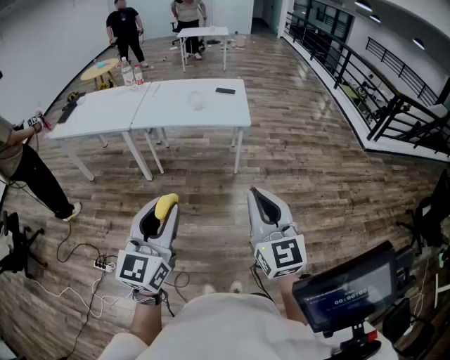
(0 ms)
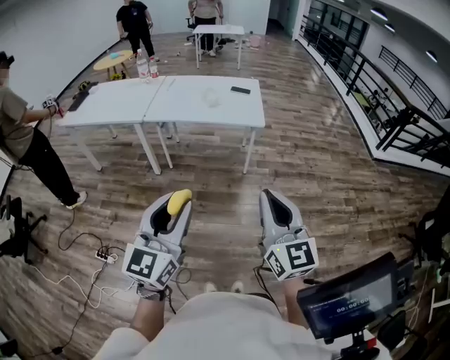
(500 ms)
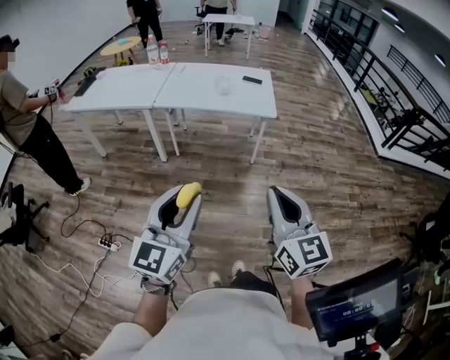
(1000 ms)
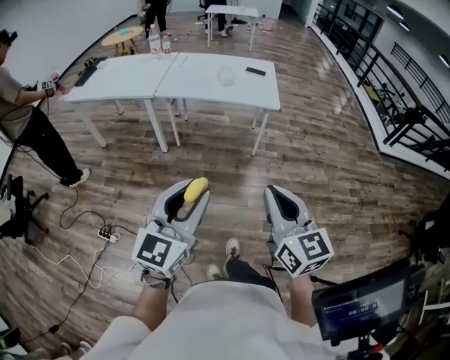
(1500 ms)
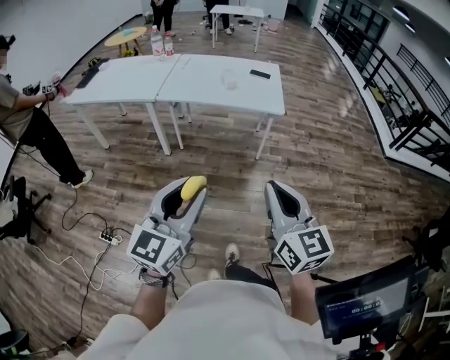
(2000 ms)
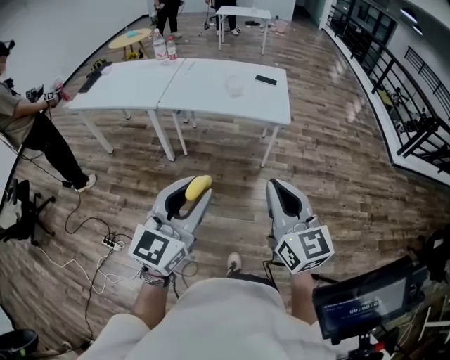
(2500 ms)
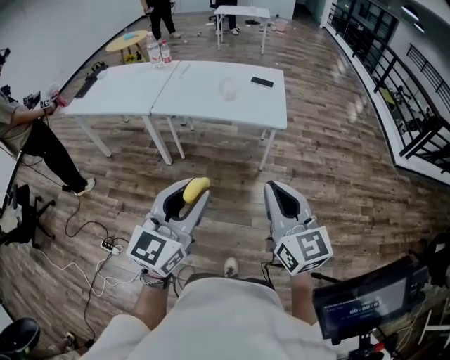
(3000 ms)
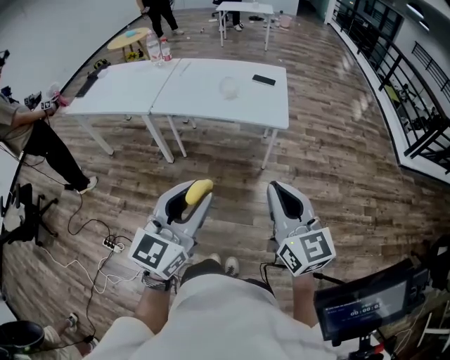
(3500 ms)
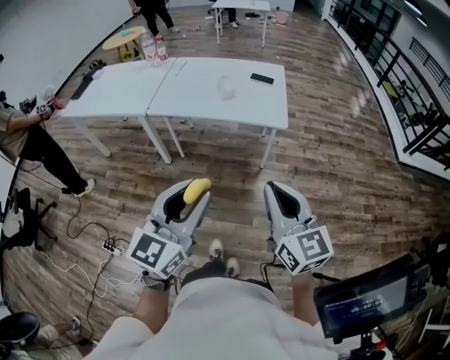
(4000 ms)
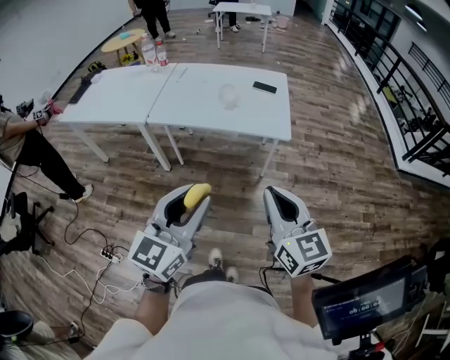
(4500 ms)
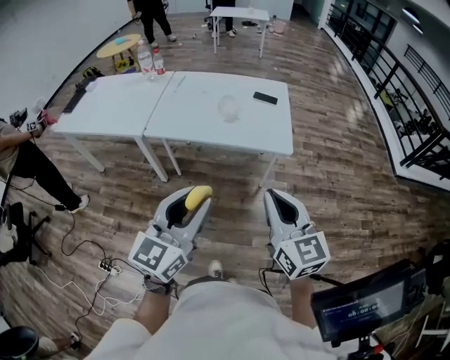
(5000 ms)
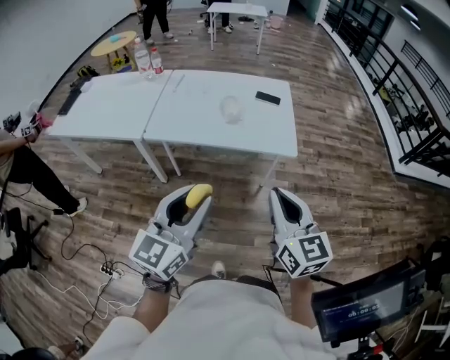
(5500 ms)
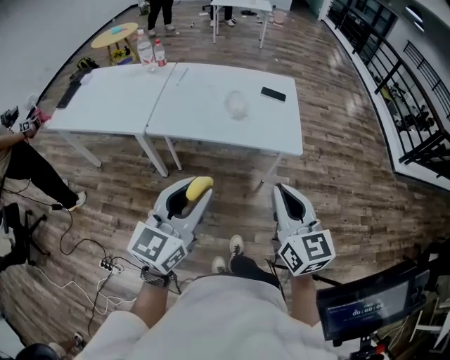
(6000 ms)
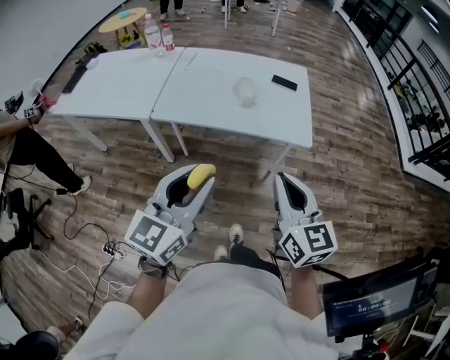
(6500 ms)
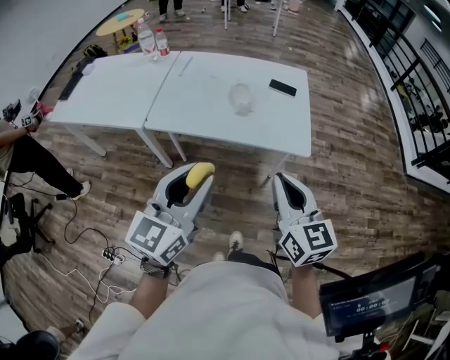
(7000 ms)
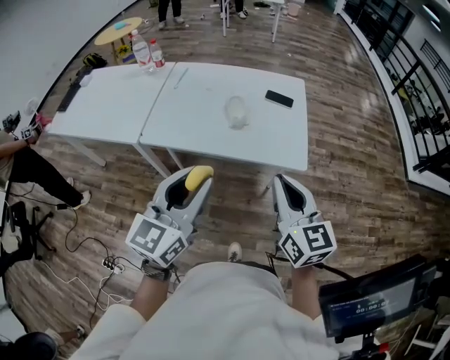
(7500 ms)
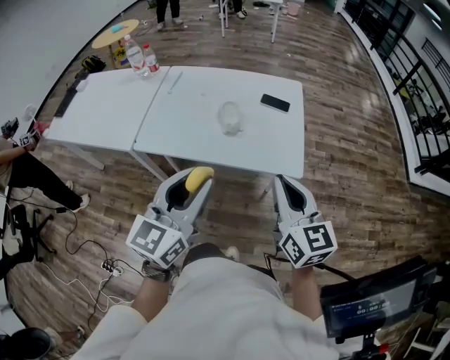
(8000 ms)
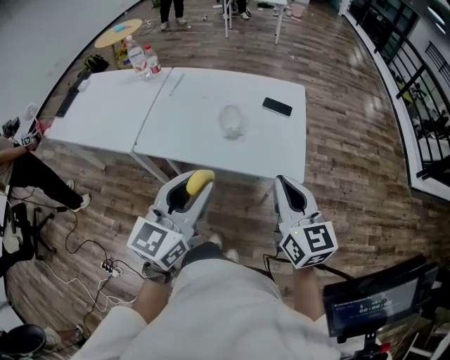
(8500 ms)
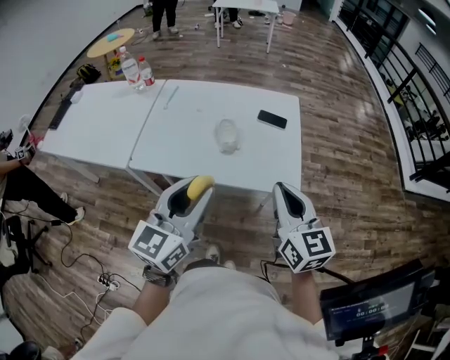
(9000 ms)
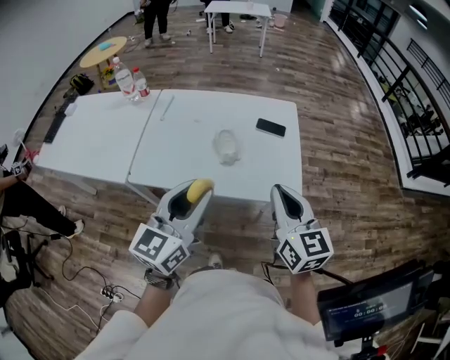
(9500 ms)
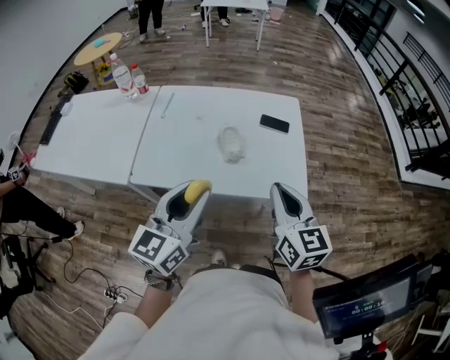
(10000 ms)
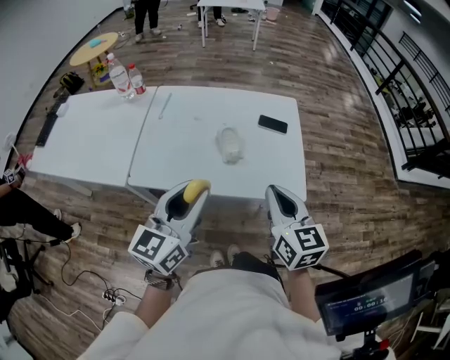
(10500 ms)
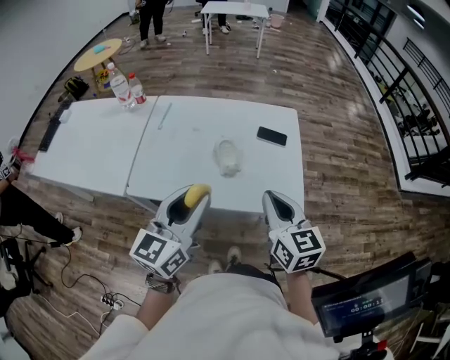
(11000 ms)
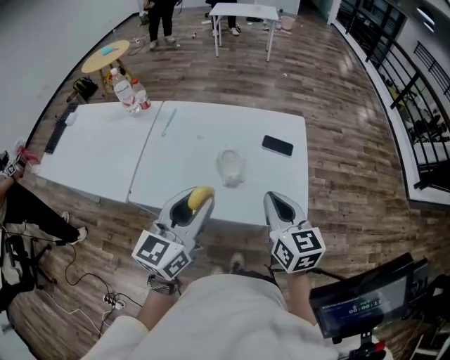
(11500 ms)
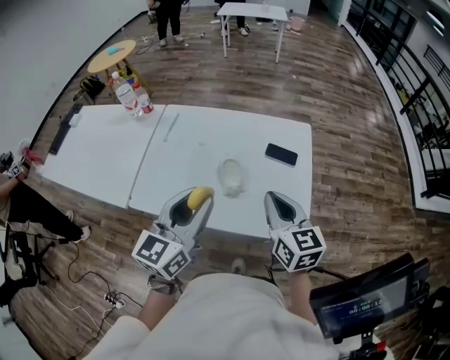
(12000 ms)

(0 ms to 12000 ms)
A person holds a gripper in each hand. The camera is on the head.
0 ms - 2000 ms: The right gripper ends up roughly 5 cm from where it was.
2000 ms - 4000 ms: The left gripper moves forward and to the right, approximately 15 cm. Meanwhile the right gripper shifts some 15 cm forward.
4000 ms - 6000 ms: Both grippers move forward and to the left, roughly 15 cm.
6000 ms - 8000 ms: The two grippers go some 15 cm forward.
8000 ms - 10000 ms: The left gripper travels forward and to the left by about 10 cm, while the right gripper shifts approximately 5 cm forward.
10000 ms - 12000 ms: The two grippers go approximately 10 cm forward.

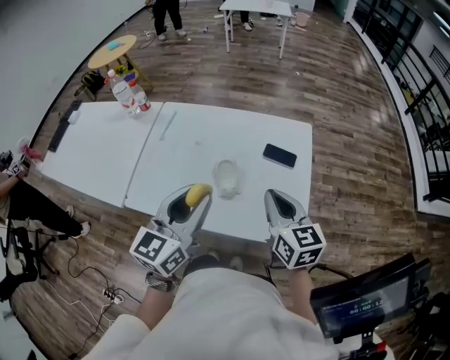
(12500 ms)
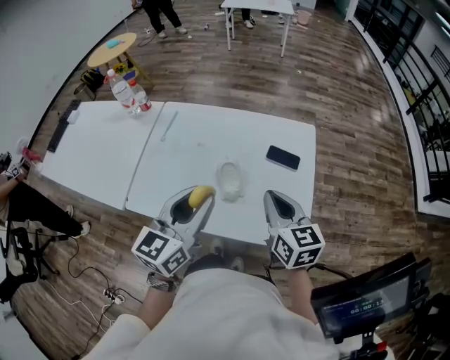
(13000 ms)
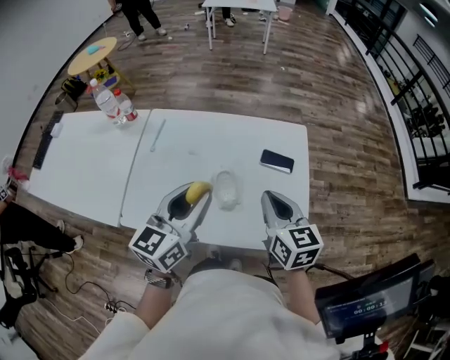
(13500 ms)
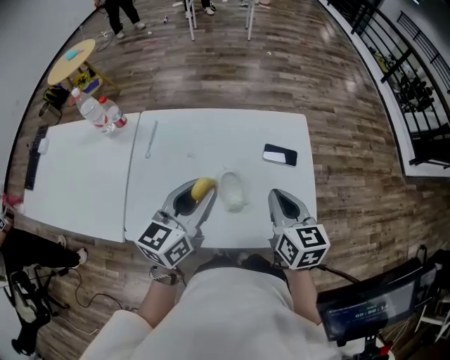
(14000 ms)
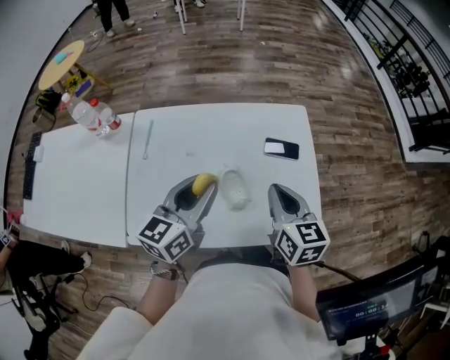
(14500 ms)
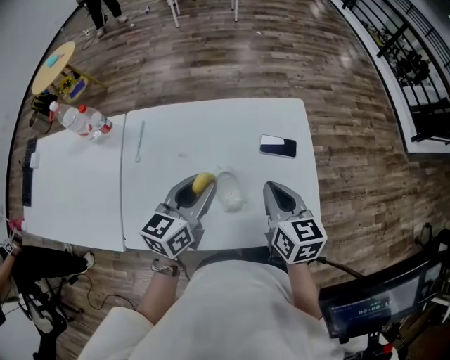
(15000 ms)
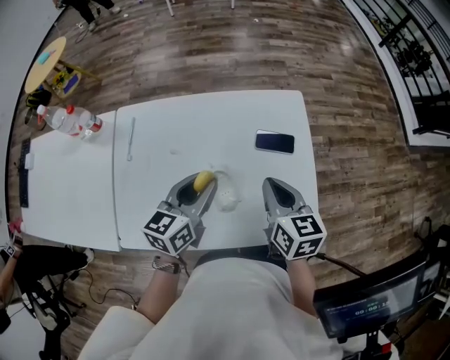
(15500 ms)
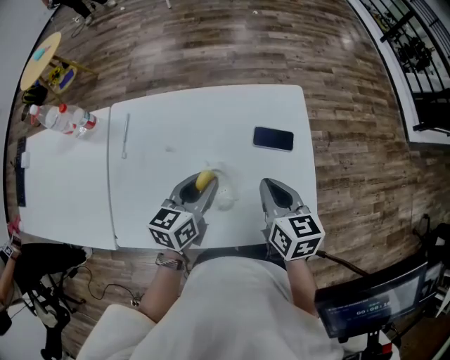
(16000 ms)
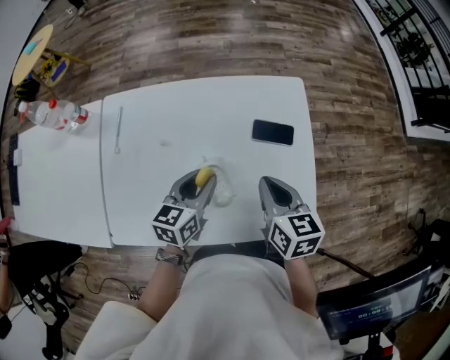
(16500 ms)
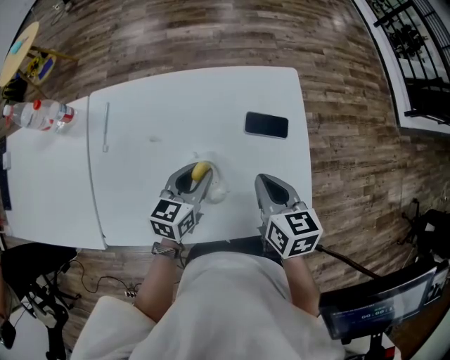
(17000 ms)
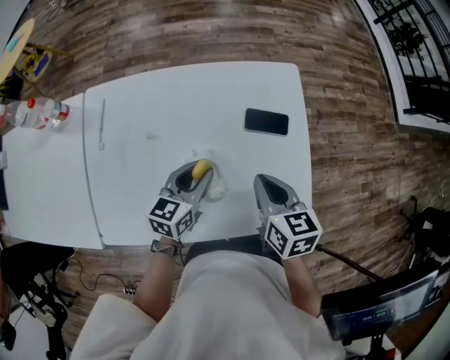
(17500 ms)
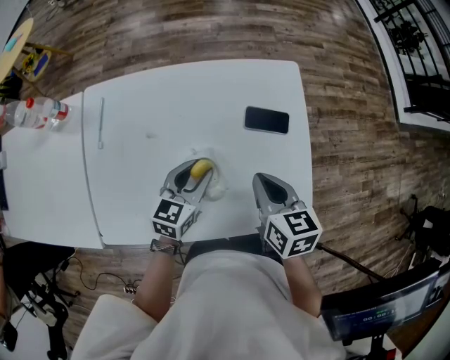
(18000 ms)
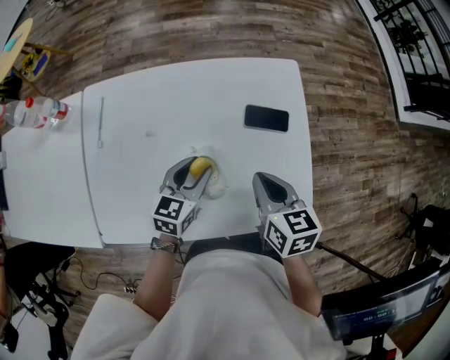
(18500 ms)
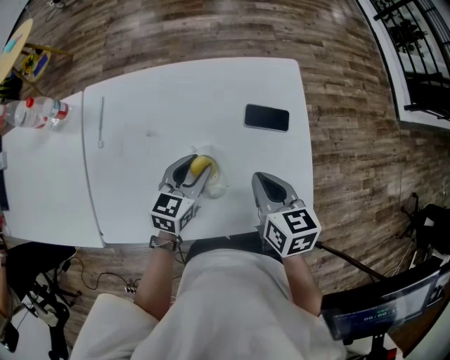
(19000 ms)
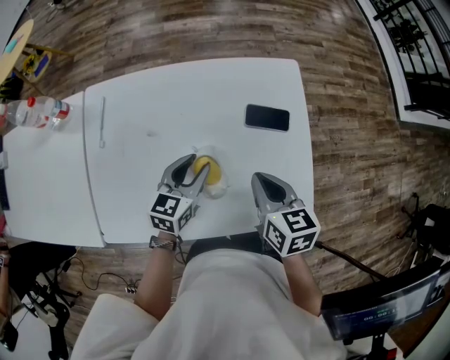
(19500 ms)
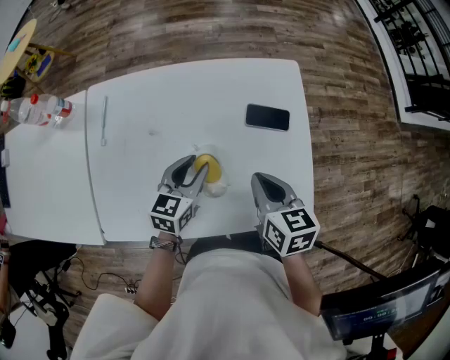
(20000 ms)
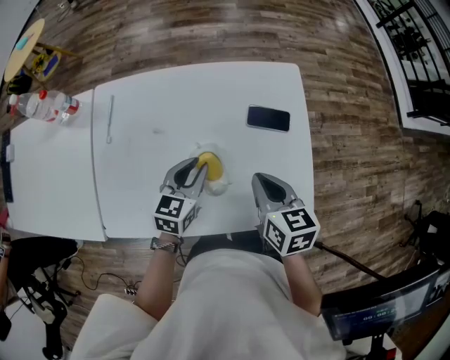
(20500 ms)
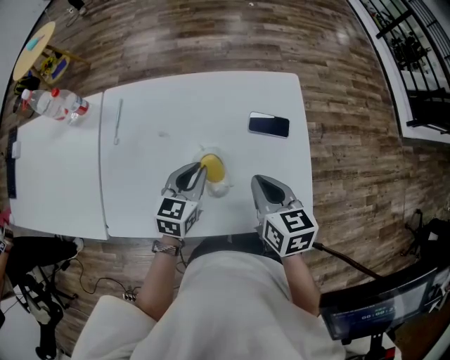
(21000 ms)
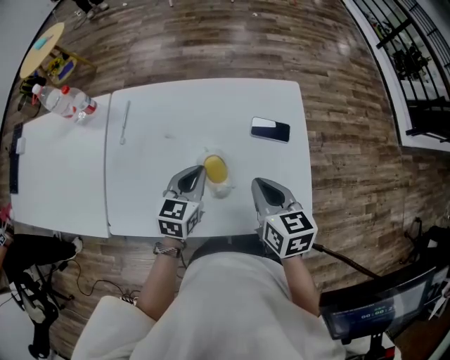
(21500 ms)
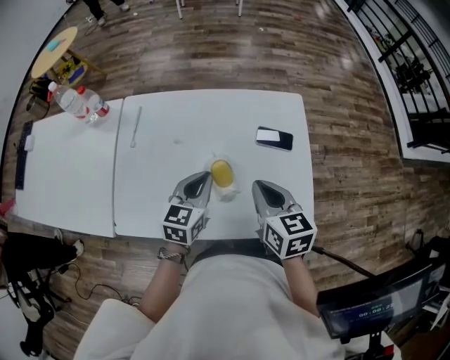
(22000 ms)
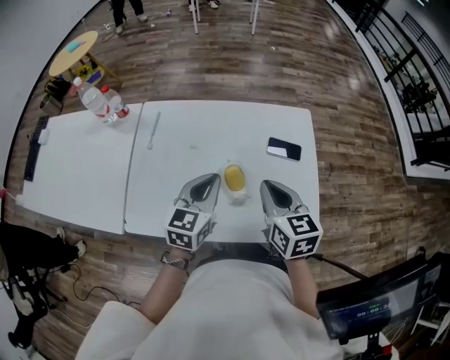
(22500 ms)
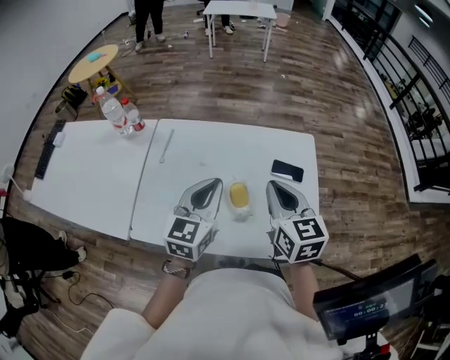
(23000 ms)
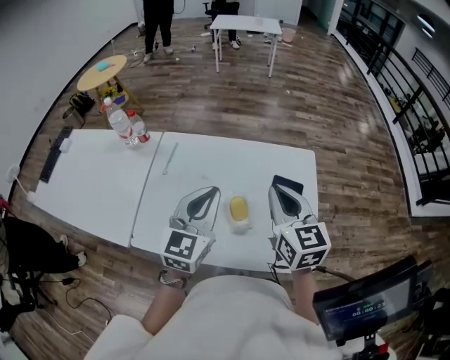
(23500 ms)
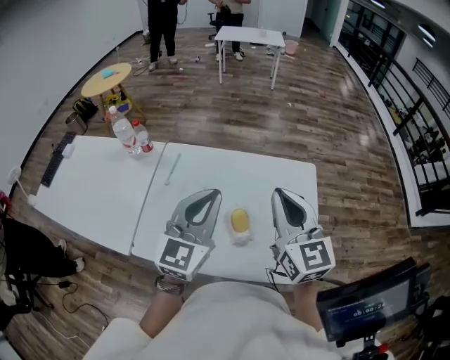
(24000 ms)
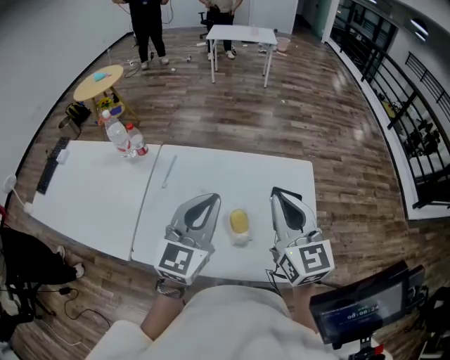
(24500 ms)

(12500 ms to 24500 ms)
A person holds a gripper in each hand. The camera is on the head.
12500 ms - 14500 ms: The right gripper shifts by approximately 5 cm, while the left gripper is displaced forward and downward by roughly 10 cm, and changes its angle by some 20 degrees.
14500 ms - 16500 ms: The left gripper is displaced downward by some 15 cm, while the right gripper heads downward, covering approximately 5 cm.
16500 ms - 18500 ms: The grippers make only small movements.
18500 ms - 20500 ms: The two grippers keep their place.
20500 ms - 22500 ms: Both grippers move upward, about 10 cm. The left gripper closes.
22500 ms - 24500 ms: Both grippers move upward, approximately 15 cm. The right gripper changes its angle by some 30 degrees, while the left gripper changes its angle by about 30 degrees.

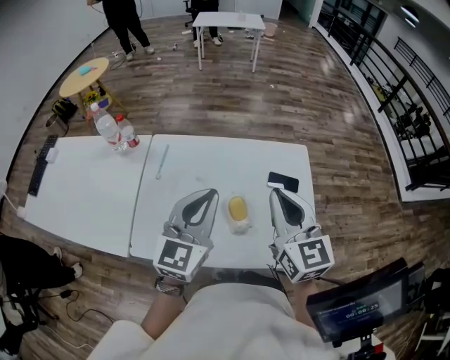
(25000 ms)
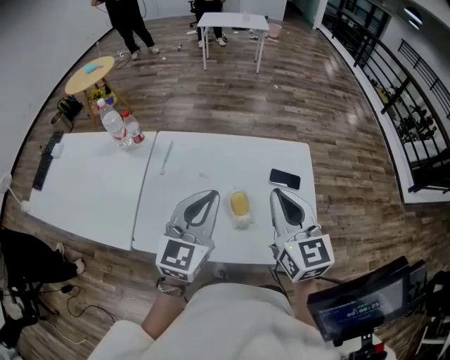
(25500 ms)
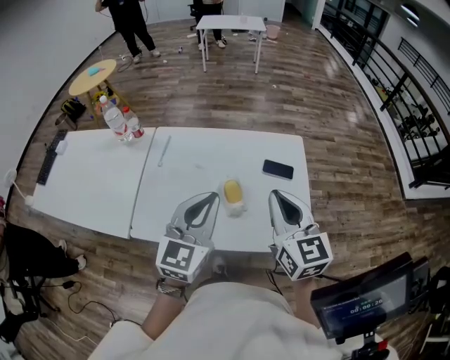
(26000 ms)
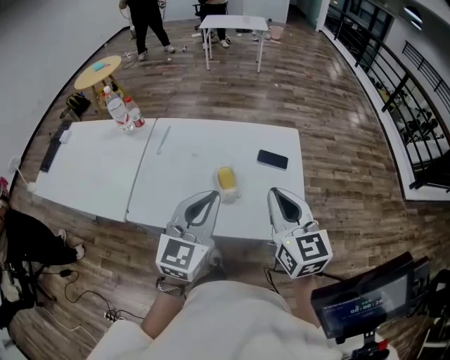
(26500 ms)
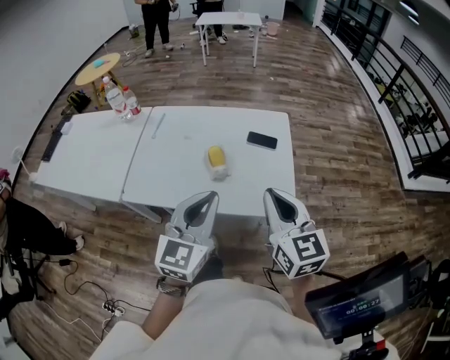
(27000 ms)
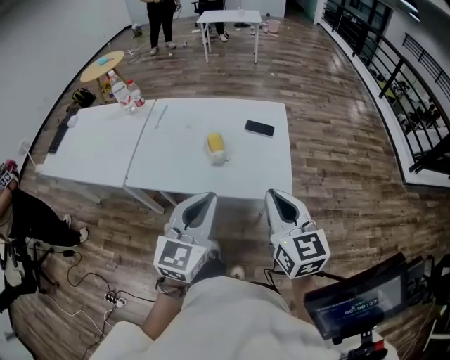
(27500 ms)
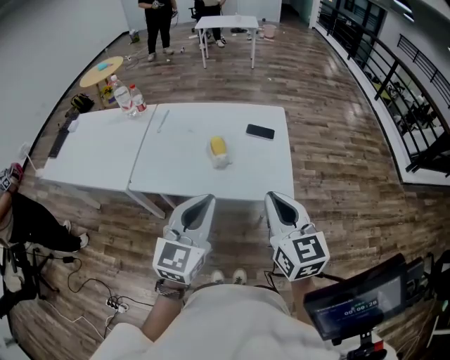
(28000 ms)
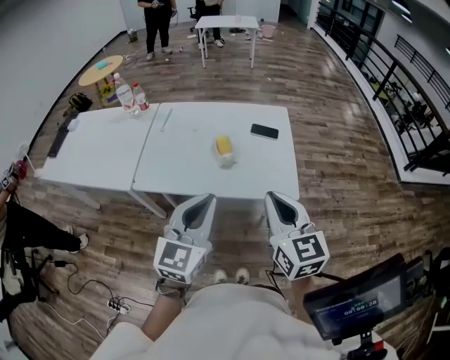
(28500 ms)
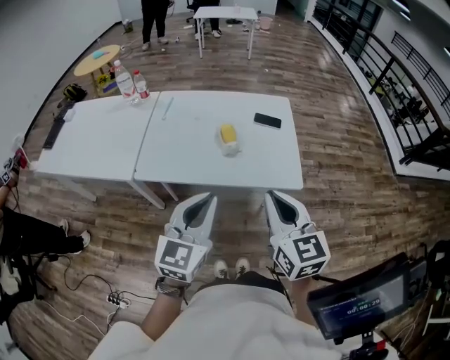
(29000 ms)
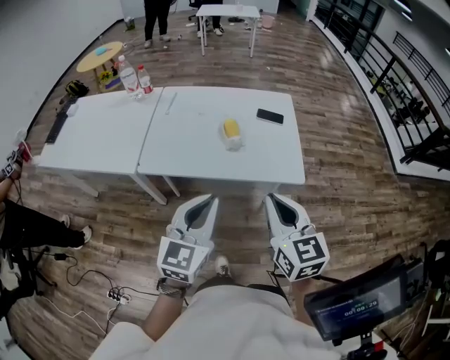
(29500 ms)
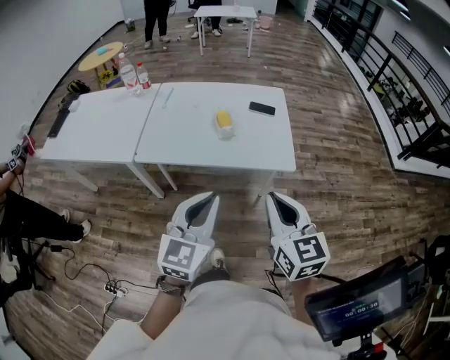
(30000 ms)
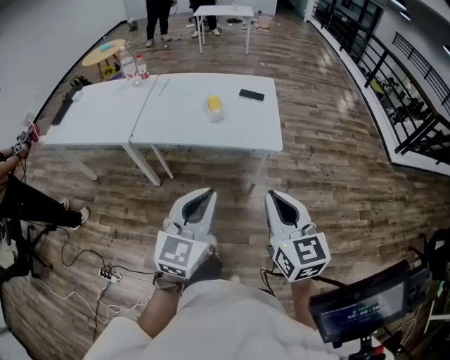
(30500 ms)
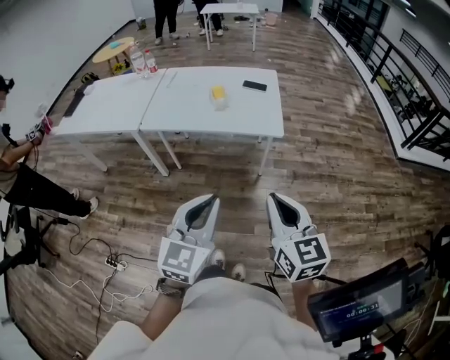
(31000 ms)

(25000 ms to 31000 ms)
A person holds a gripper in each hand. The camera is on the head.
25000 ms - 27000 ms: The two grippers go some 20 cm backward and to the right.
27000 ms - 29000 ms: Both grippers move backward and to the left, roughly 10 cm.
29000 ms - 31000 ms: The grippers both shift backward and to the right by about 25 cm.
